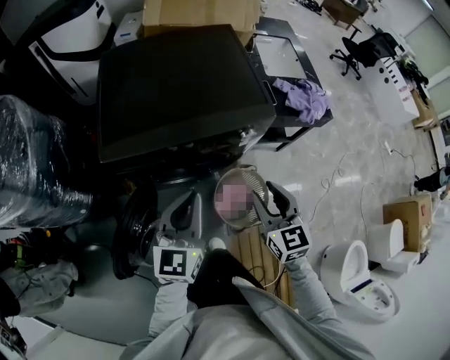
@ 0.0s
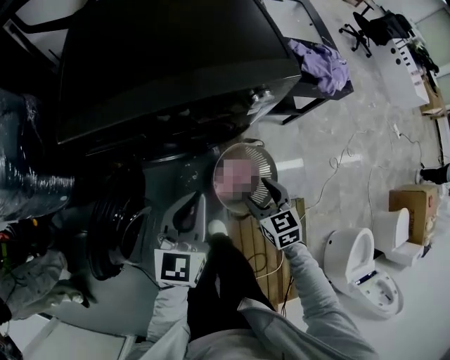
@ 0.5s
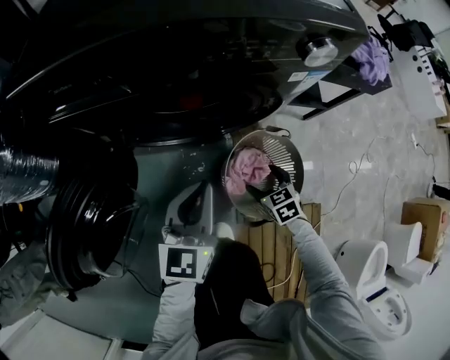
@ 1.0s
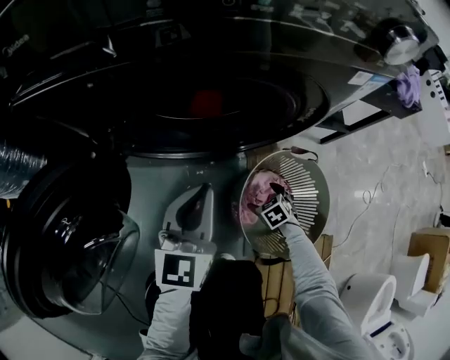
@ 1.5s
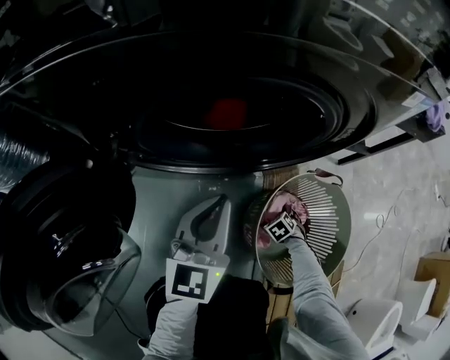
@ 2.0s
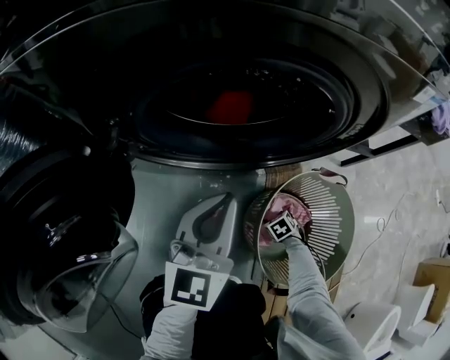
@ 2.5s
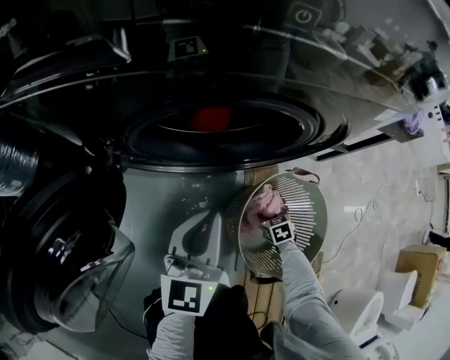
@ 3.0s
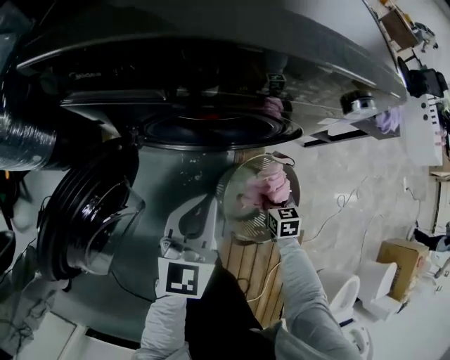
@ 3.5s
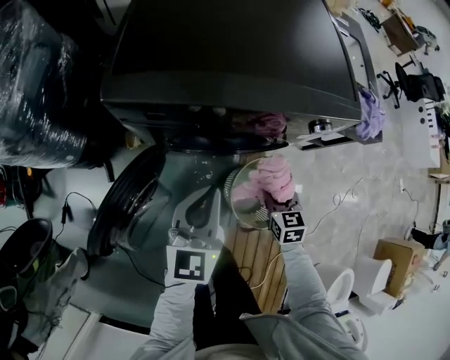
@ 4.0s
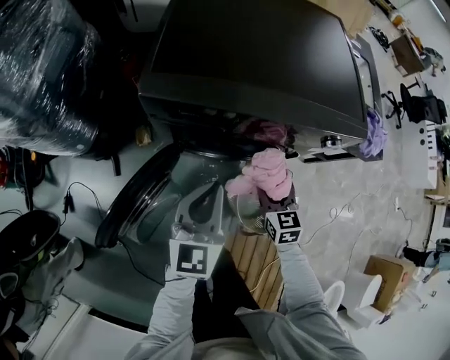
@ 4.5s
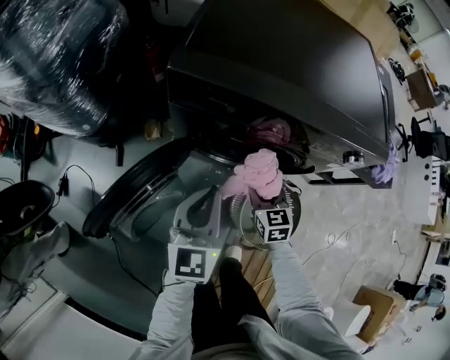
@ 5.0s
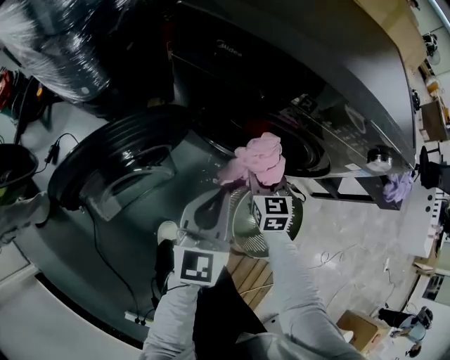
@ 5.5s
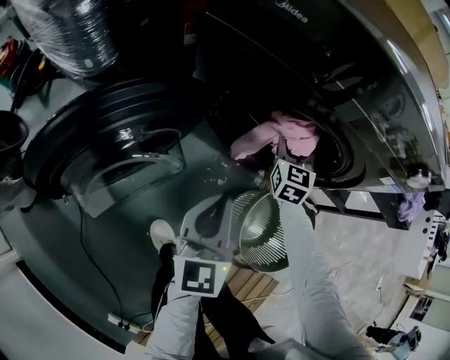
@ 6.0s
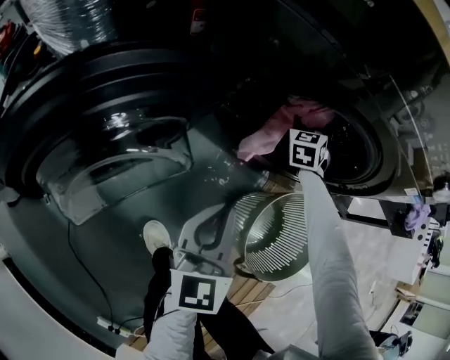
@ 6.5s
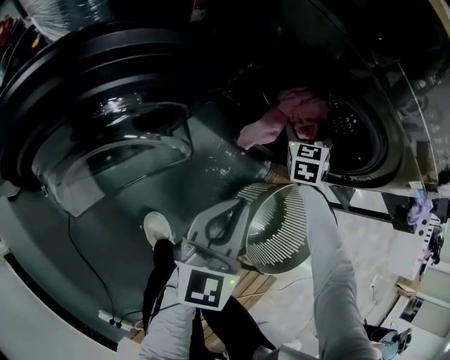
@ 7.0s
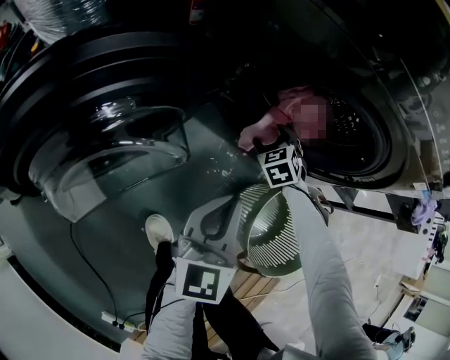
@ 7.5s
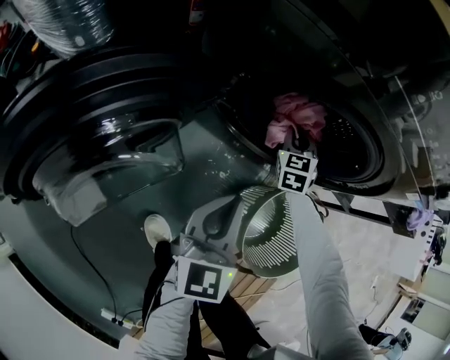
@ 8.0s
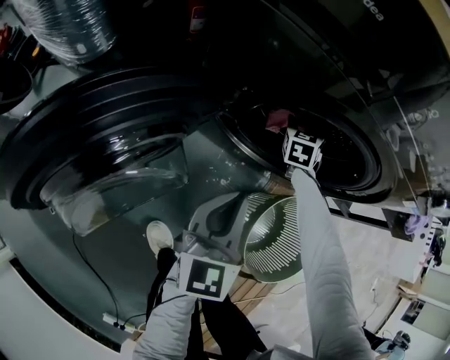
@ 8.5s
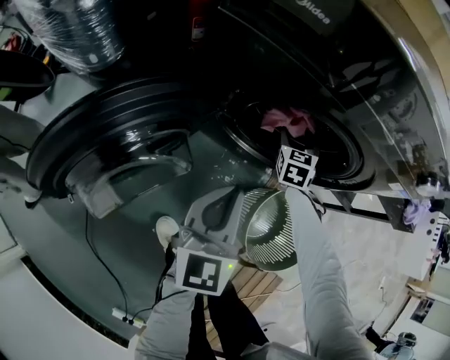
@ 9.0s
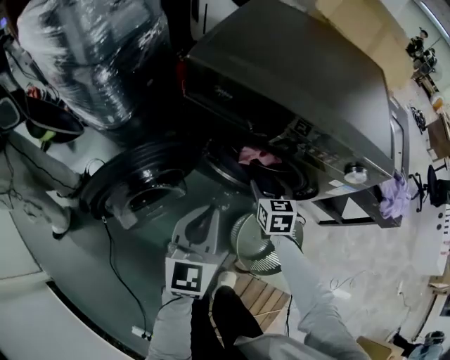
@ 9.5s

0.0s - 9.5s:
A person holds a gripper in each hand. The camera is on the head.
0.0s - 2.0s: The right gripper shifts roughly 90 cm downward, tilts its fingers about 60 degrees downward, and opens up. The left gripper travels downward by roughly 50 cm.
2.0s - 4.0s: The left gripper travels upward by about 35 cm, while the right gripper goes roughly 60 cm upward, points its fingers roughly 40 degrees further upward, and closes its fingers.
4.0s - 5.5s: The right gripper moves to the left, downward and forward, about 15 cm, and swivels approximately 20 degrees; the left gripper heads downward, covering about 15 cm, and changes its angle by roughly 20 degrees.
5.5s - 7.5s: The left gripper heads downward, covering roughly 15 cm. Meanwhile the right gripper moves downward and forward, about 25 cm, rotates roughly 40 degrees, and opens its fingers.
7.5s - 9.5s: Both grippers travel together upward, about 25 cm. The right gripper changes its angle by roughly 40 degrees, and closes, then reopens.

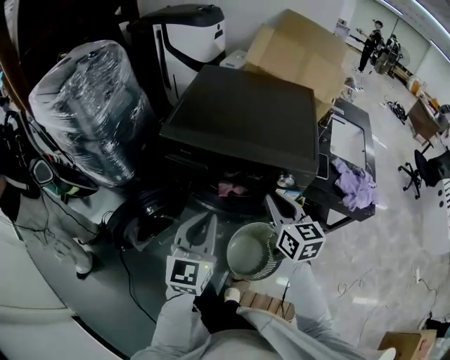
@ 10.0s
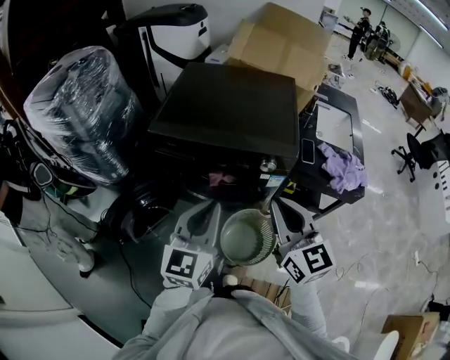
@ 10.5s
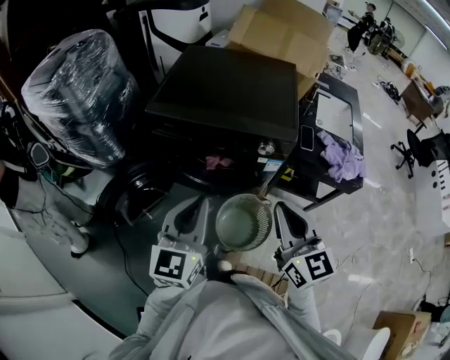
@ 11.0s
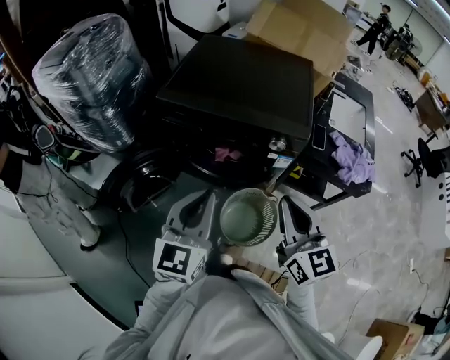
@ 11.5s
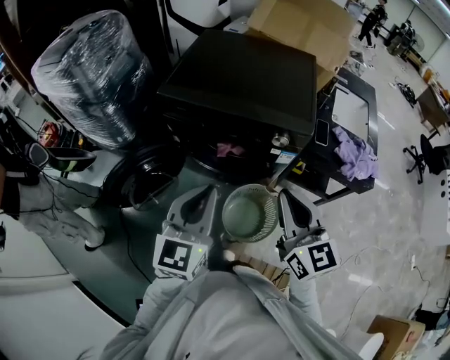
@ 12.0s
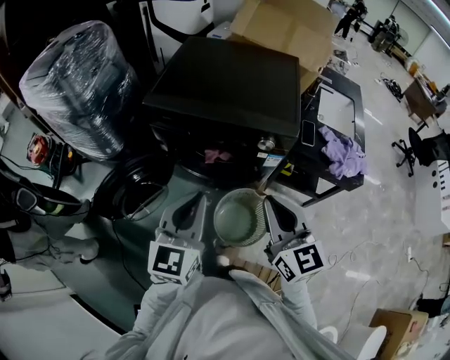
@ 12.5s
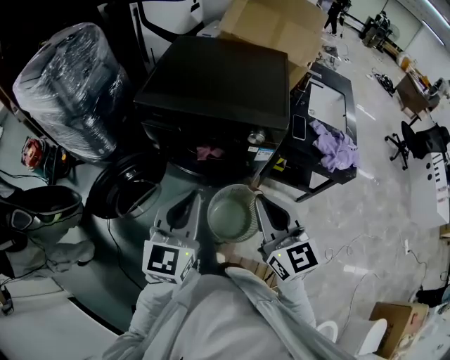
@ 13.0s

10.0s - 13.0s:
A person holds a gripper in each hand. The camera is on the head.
10.0s - 11.5s: The left gripper heads backward and upward, covering about 10 cm. Meanwhile the right gripper travels backward and upward by roughly 15 cm.
11.5s - 13.0s: The grippers make only small movements.

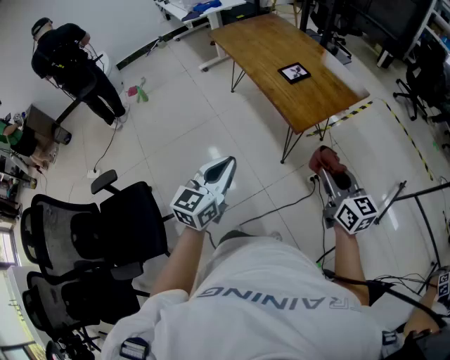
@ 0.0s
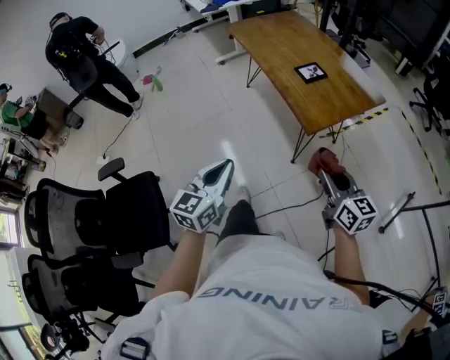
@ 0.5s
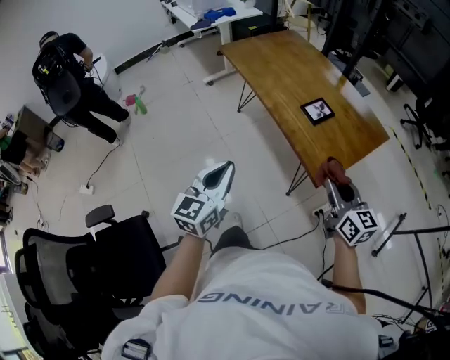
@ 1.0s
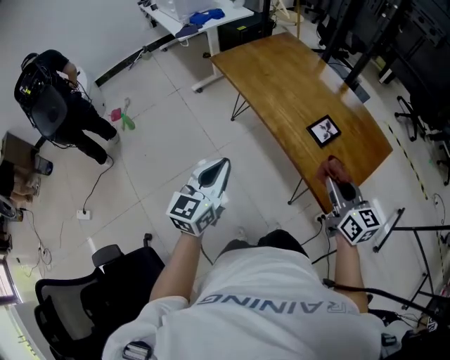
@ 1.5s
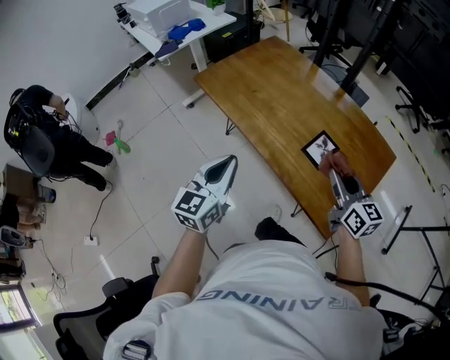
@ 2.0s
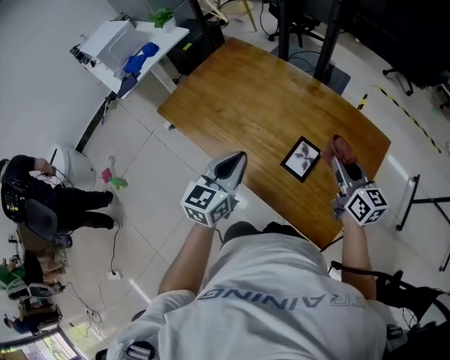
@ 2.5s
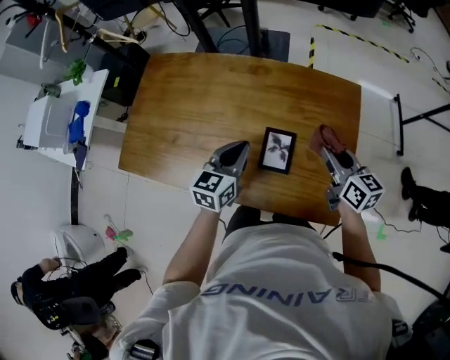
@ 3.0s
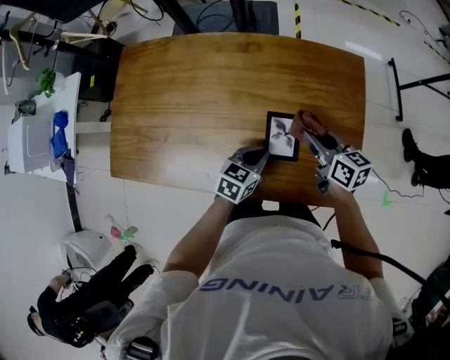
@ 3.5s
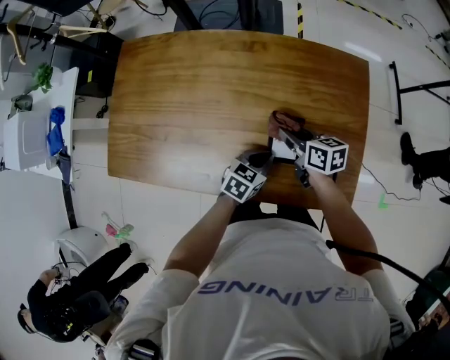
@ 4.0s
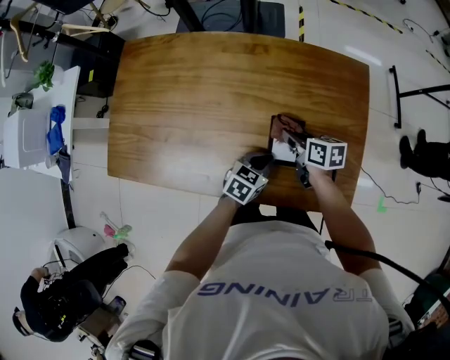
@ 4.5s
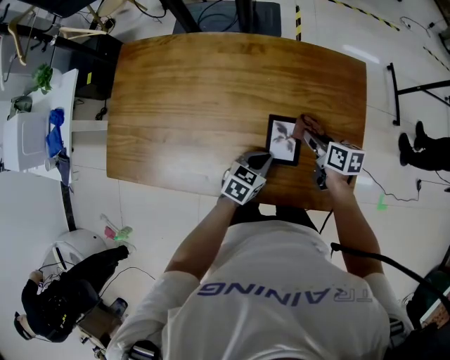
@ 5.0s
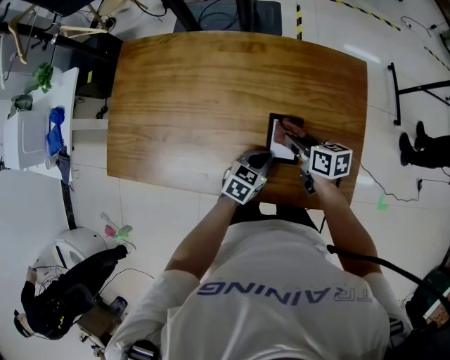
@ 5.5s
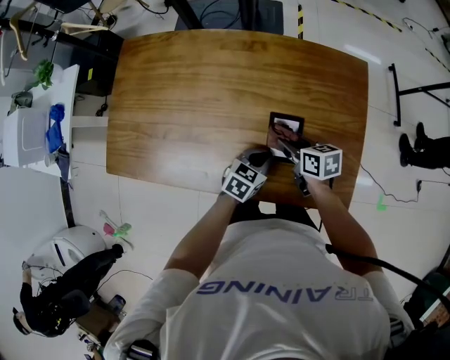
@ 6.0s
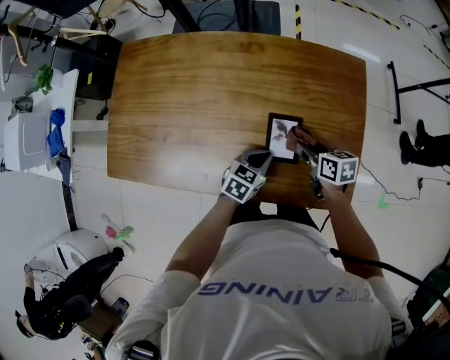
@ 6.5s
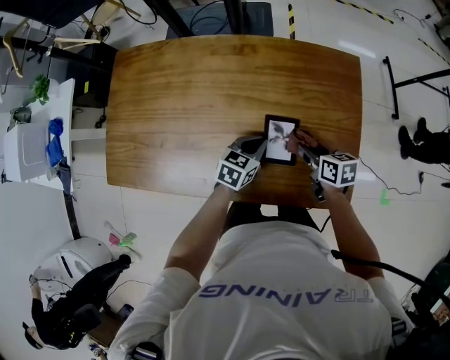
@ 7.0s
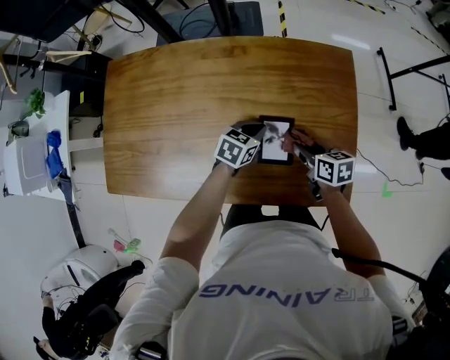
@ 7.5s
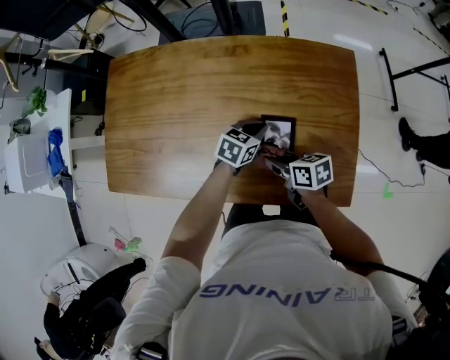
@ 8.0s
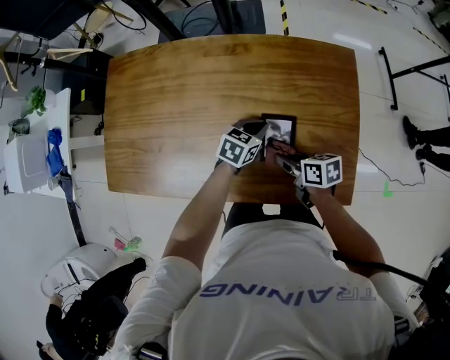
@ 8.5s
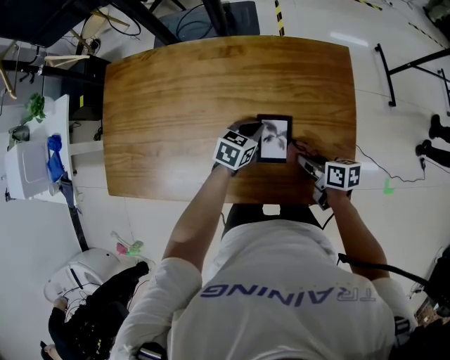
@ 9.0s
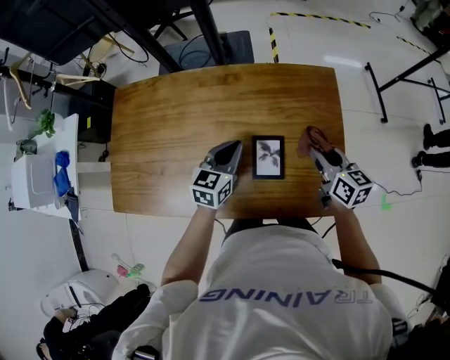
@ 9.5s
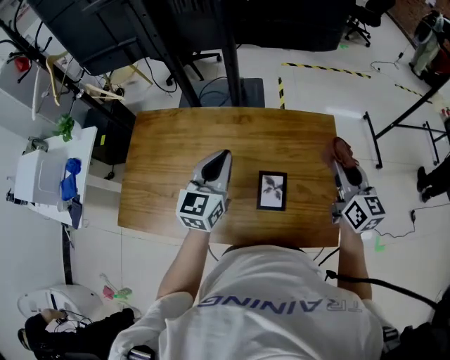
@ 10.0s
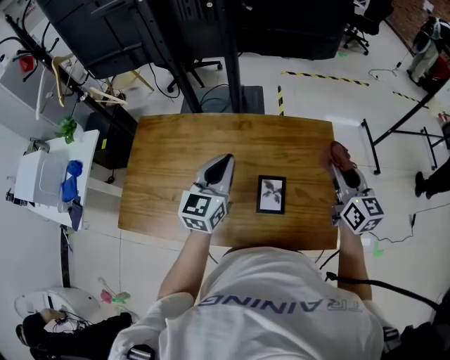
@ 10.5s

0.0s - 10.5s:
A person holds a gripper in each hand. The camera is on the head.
0.0s - 2.0s: Both grippers are carried forward, some 50 cm.
2.0s - 4.0s: The right gripper heads downward, covering approximately 20 cm, and changes its angle by approximately 40 degrees; the left gripper shifts by some 40 cm, and points its fingers approximately 30 degrees further downward.
4.0s - 6.5s: The right gripper swings left and right, about 10 cm each way, with 2 reversals.
6.5s - 8.5s: The right gripper goes some 5 cm to the left; the left gripper shifts some 10 cm forward.
8.5s - 10.5s: The left gripper moves upward, roughly 30 cm, and points its fingers approximately 30 degrees further upward; the right gripper travels upward and to the right by approximately 30 cm, and tips its fingers upward by about 30 degrees.

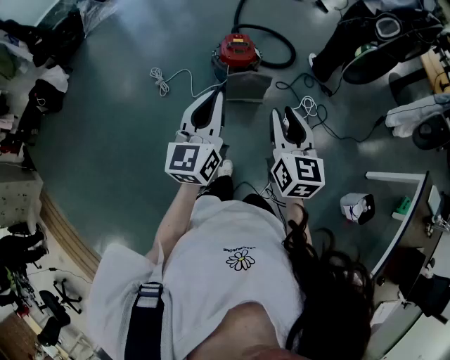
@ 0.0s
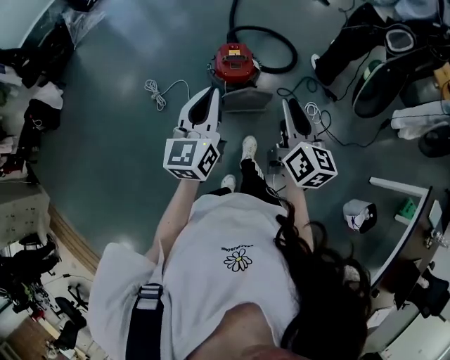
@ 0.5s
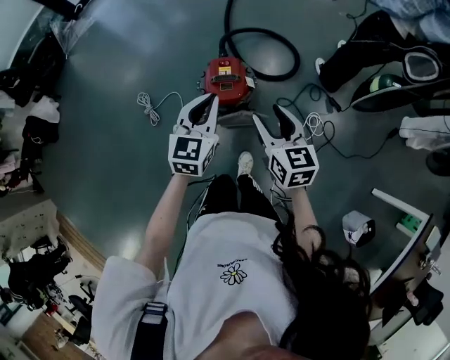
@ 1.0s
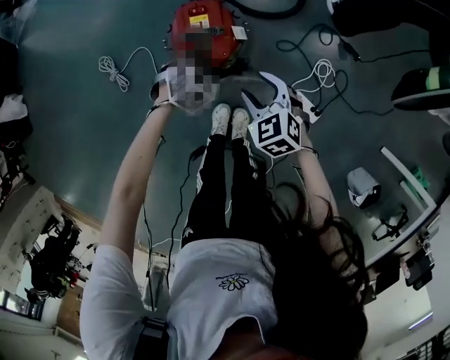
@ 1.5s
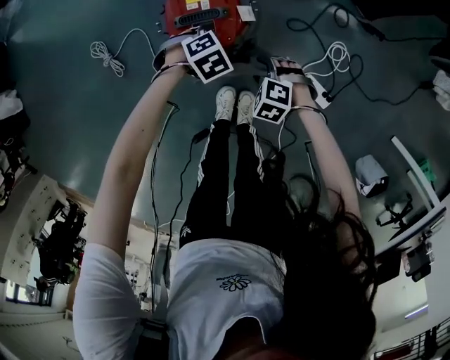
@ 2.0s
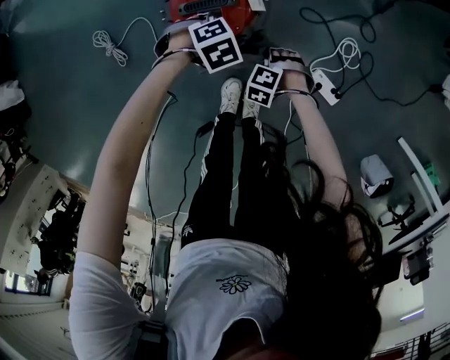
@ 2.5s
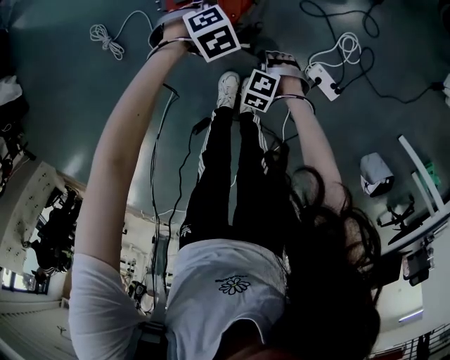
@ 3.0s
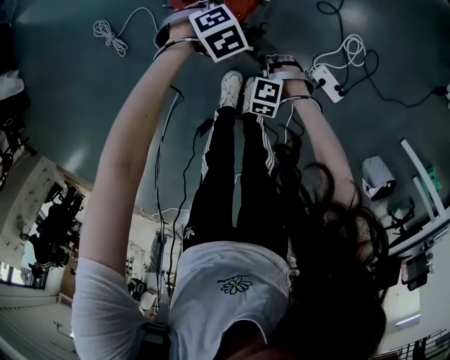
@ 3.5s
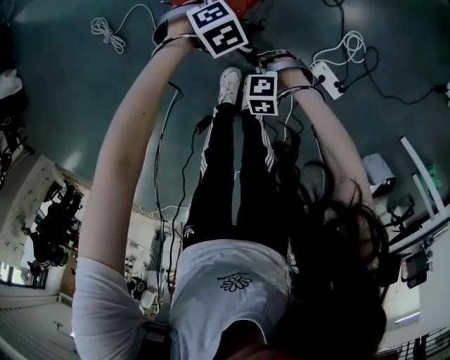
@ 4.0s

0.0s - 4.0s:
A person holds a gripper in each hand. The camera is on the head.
0.0s - 2.0s: The pair of grippers is taken roughly 50 cm. Both grippers move downward, roughly 60 cm. The right gripper angles its fingers downward, by about 60 degrees, and opens its fingers. The left gripper points its fingers approximately 80 degrees further downward.
2.0s - 4.0s: The right gripper shifts by approximately 10 cm, rotates approximately 30 degrees, and closes its fingers.
